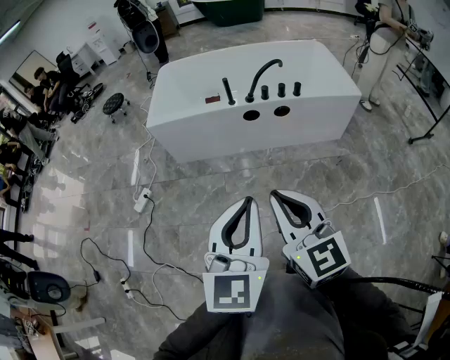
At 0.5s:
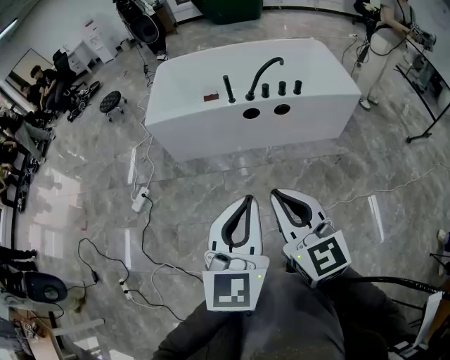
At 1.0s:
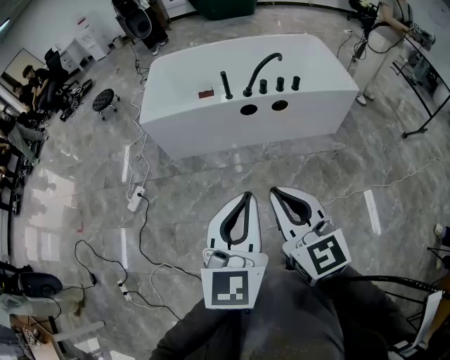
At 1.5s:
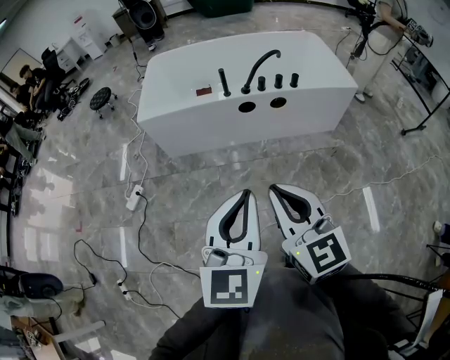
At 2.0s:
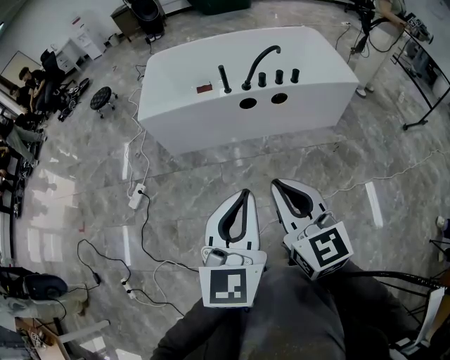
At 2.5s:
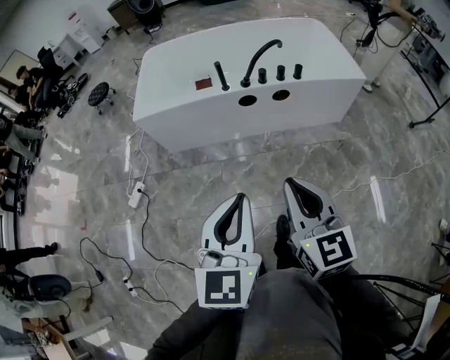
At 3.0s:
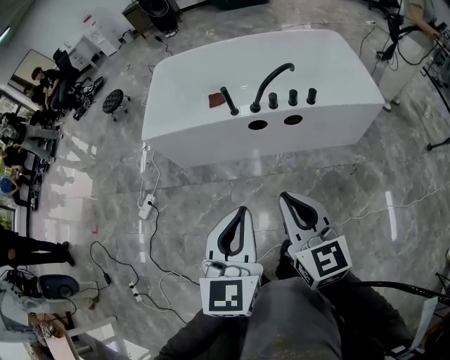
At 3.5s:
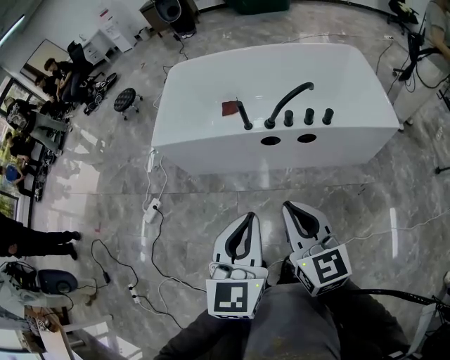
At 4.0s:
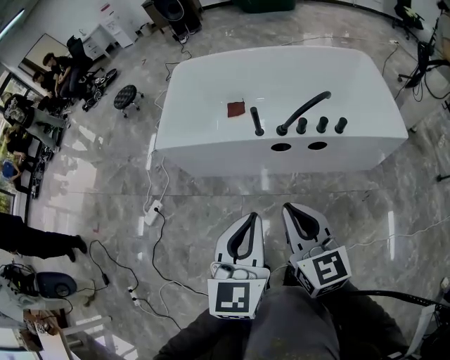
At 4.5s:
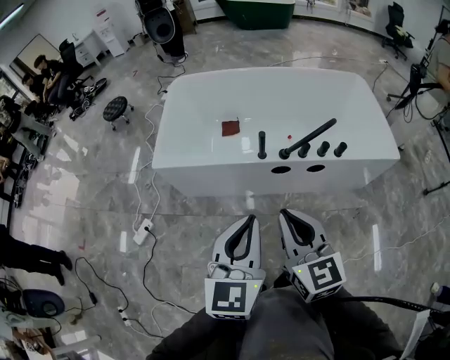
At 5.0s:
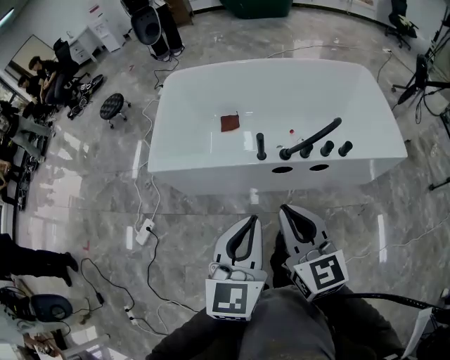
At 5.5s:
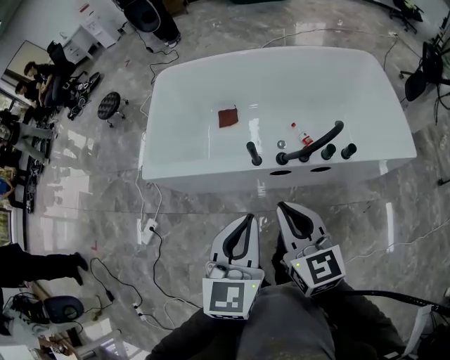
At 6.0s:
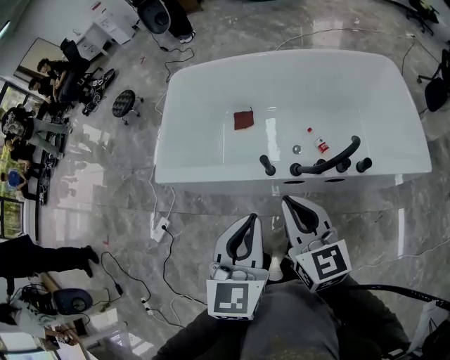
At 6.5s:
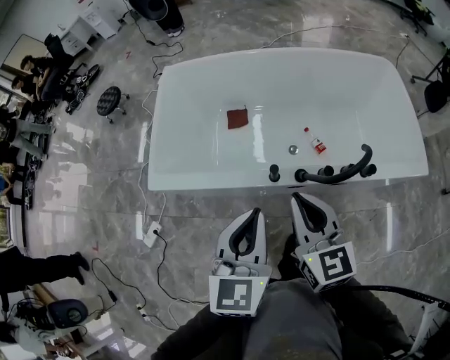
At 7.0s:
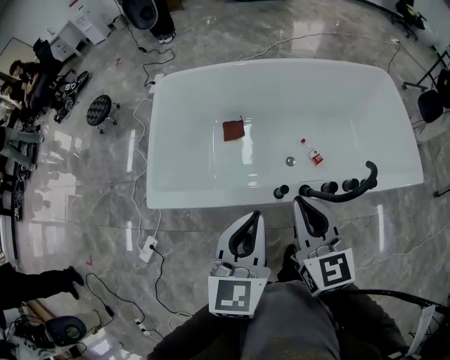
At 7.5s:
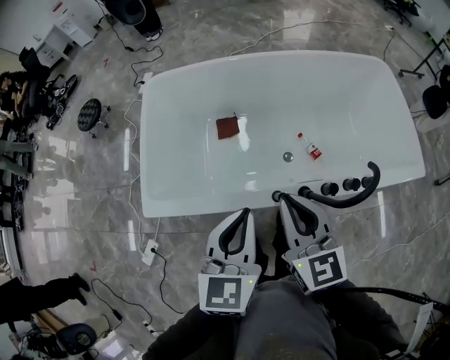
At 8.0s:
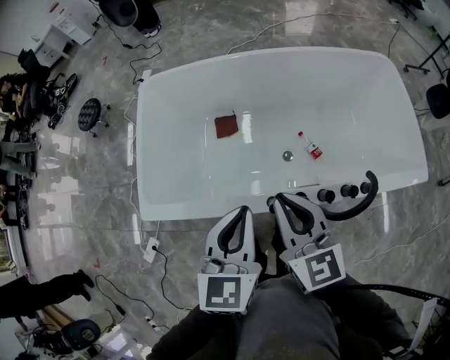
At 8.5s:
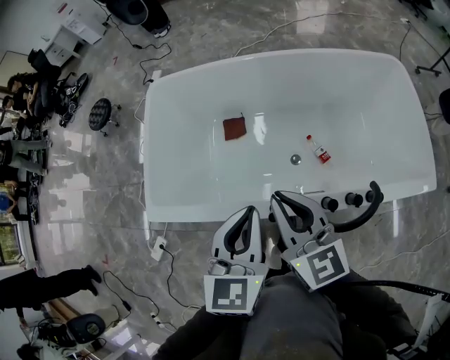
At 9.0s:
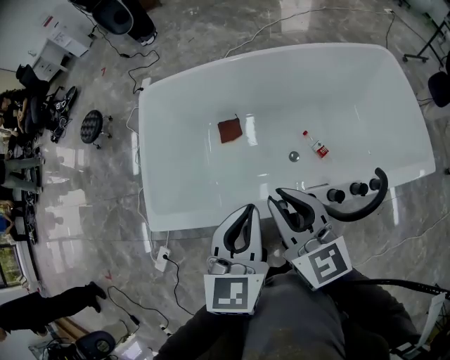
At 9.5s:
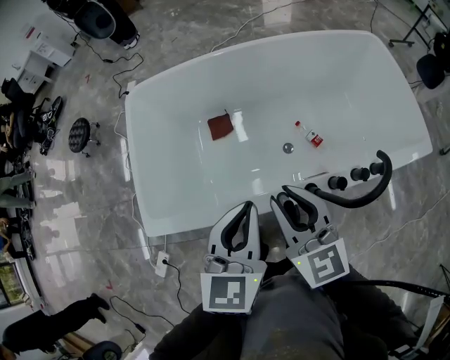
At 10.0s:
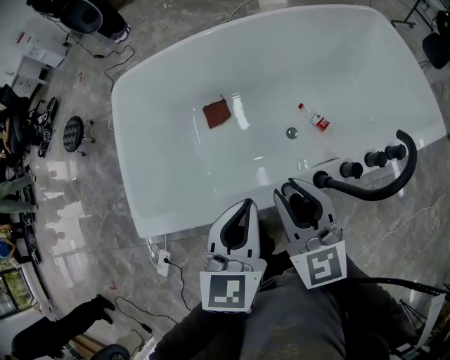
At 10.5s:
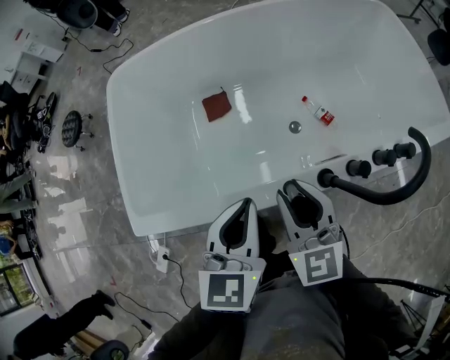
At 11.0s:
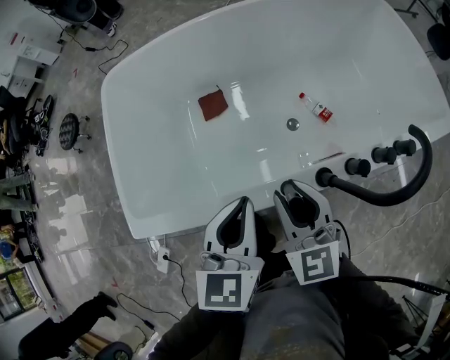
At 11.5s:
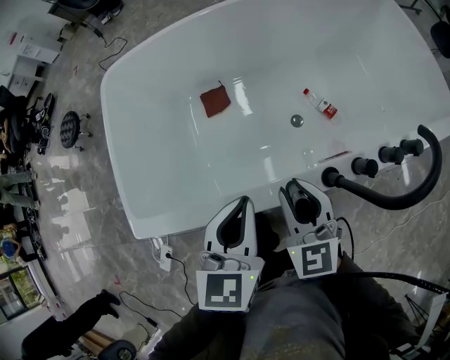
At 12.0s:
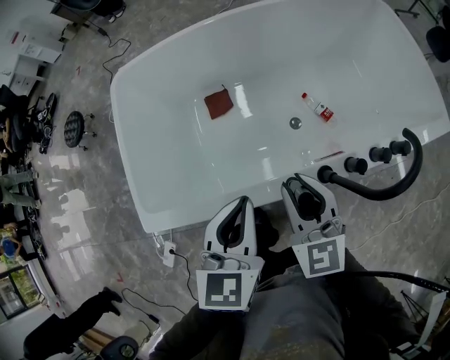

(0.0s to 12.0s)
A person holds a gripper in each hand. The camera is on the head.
0.0s - 2.0s: The grippers stay close to where they were, moving slightly.
2.0s - 4.0s: Both grippers move forward, some 30 cm.
4.0s - 6.0s: The two grippers go some 25 cm forward.
6.0s - 8.0s: Both grippers travel together forward, some 20 cm.
8.0s - 10.0s: Both grippers travel together downward, roughly 15 cm. The right gripper opens its fingers.
10.0s - 12.0s: The right gripper moves some 10 cm downward and comes back.

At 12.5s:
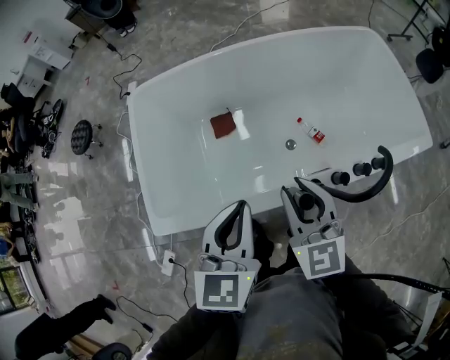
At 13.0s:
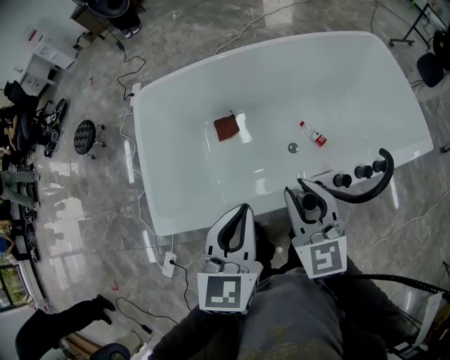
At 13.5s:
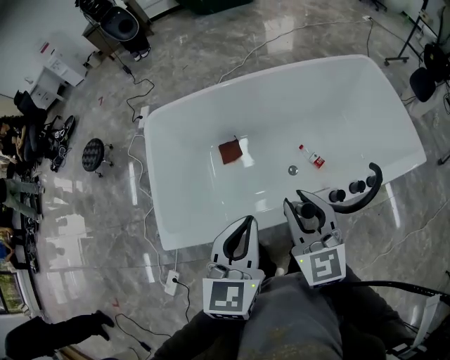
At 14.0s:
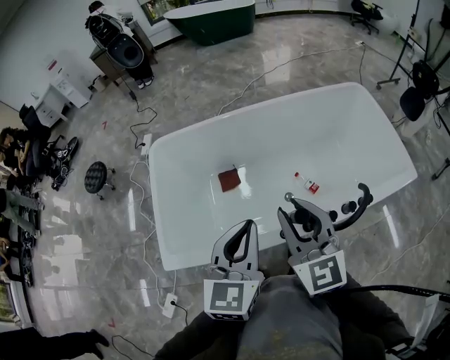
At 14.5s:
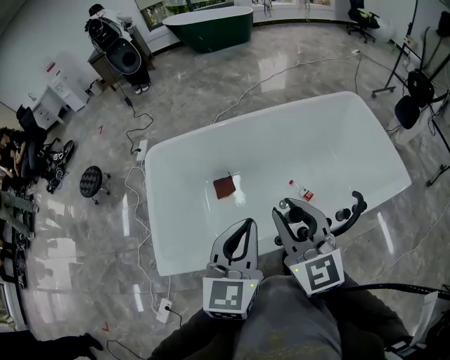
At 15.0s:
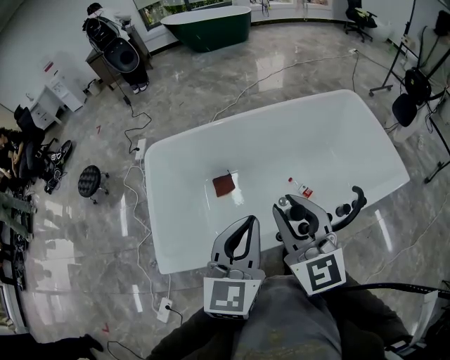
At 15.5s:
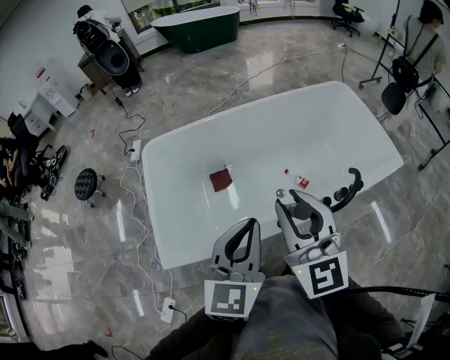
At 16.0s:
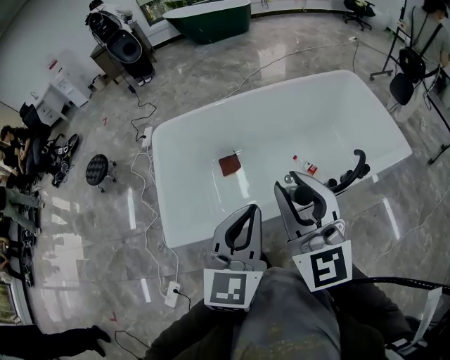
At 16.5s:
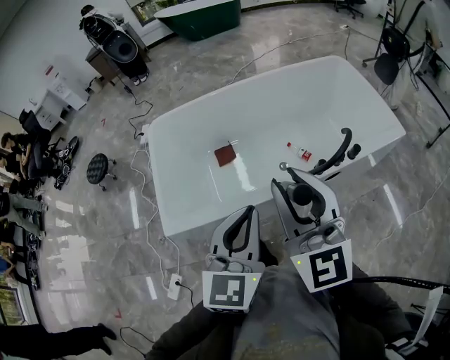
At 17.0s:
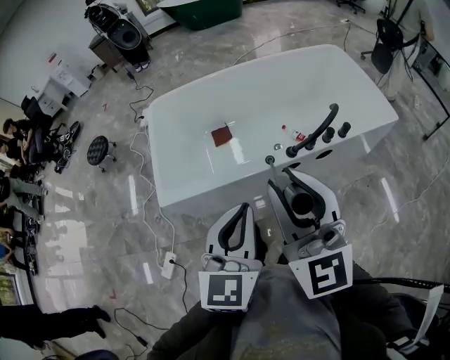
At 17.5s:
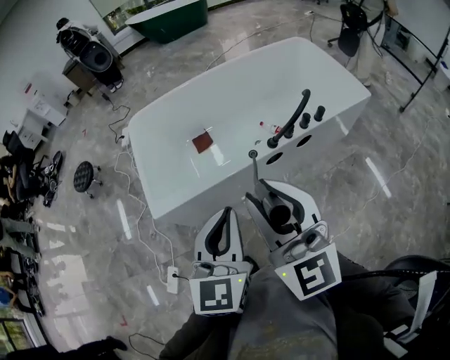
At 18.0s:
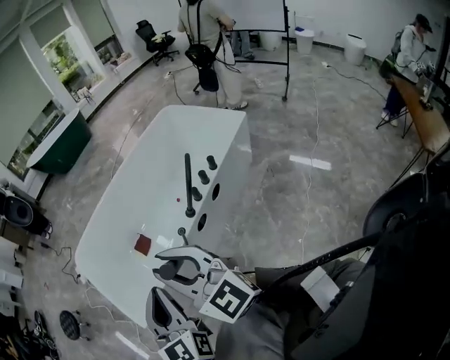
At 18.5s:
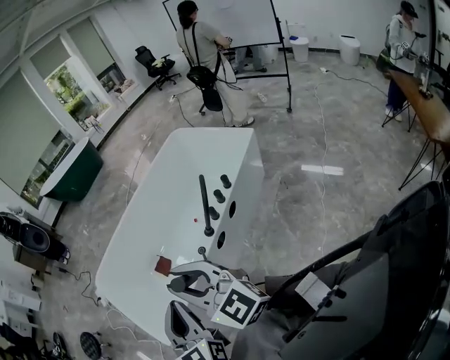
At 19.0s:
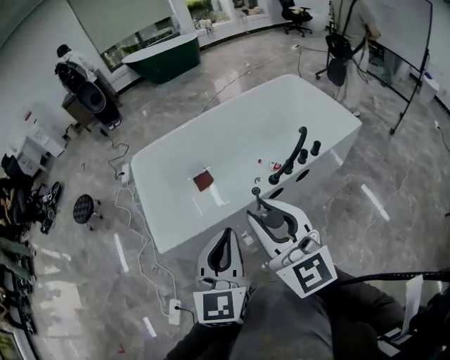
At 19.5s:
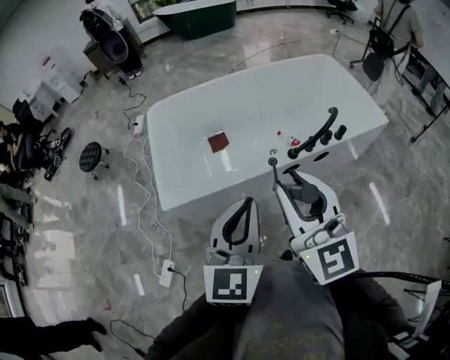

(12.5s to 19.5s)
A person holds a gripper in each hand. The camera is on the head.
12.5s - 14.5s: The two grippers go some 15 cm upward.
14.5s - 16.0s: The right gripper shifts approximately 10 cm backward and upward. The left gripper heads backward, covering about 10 cm.
16.0s - 17.5s: The two grippers go some 20 cm backward.
17.5s - 19.5s: The left gripper is displaced upward by approximately 5 cm.

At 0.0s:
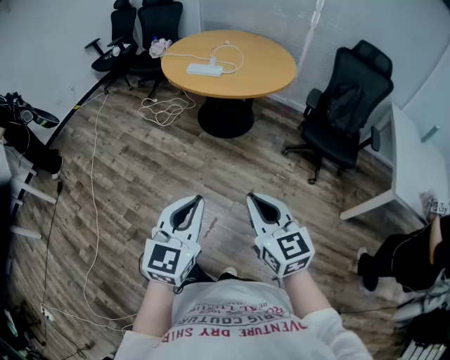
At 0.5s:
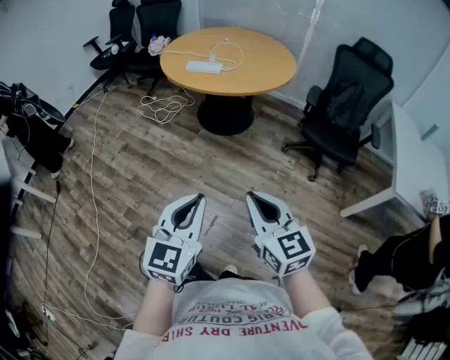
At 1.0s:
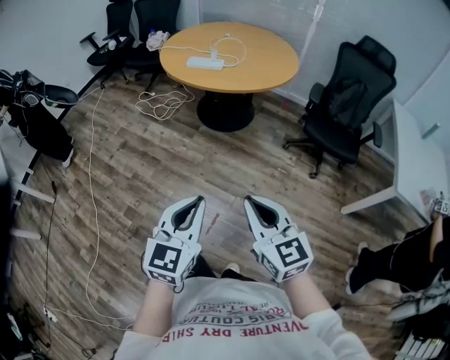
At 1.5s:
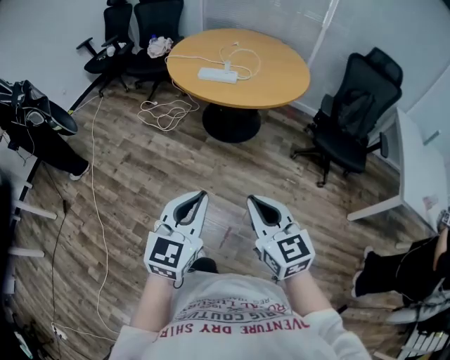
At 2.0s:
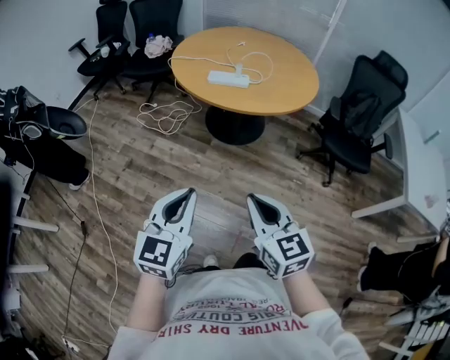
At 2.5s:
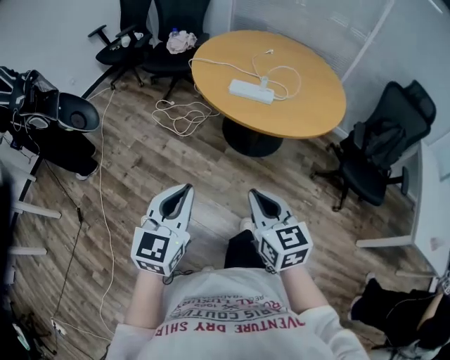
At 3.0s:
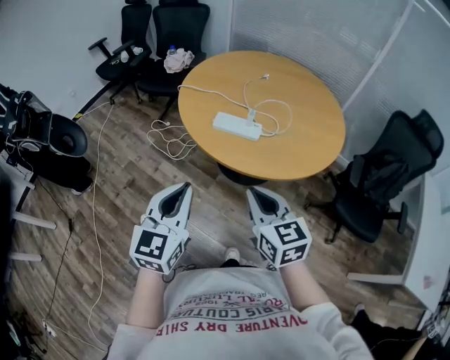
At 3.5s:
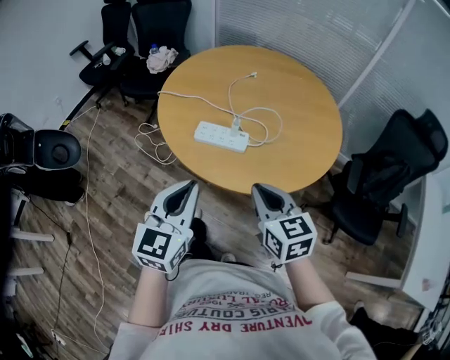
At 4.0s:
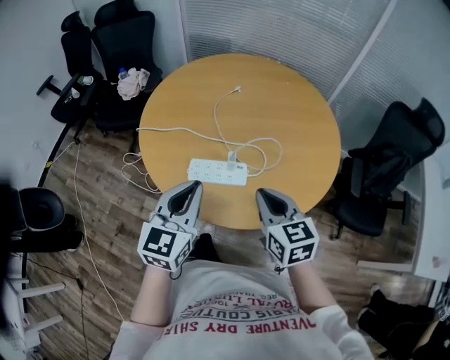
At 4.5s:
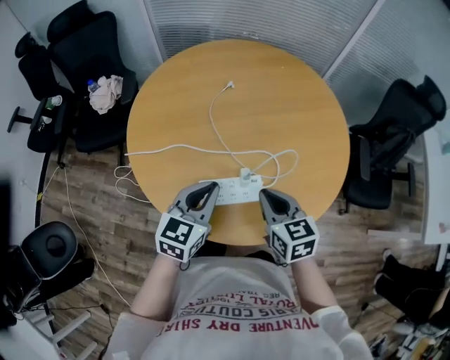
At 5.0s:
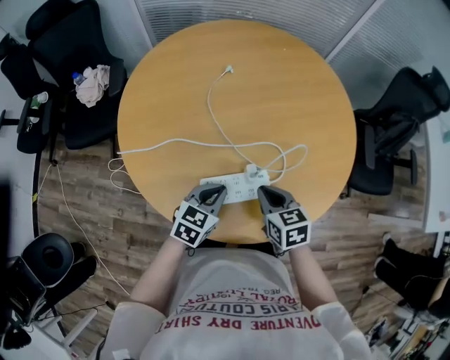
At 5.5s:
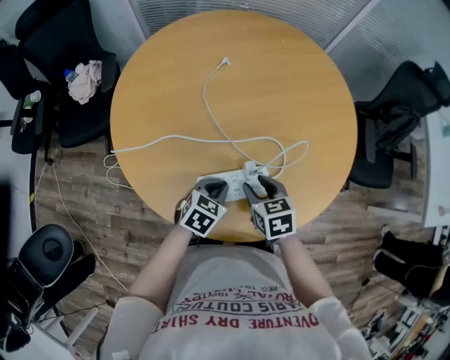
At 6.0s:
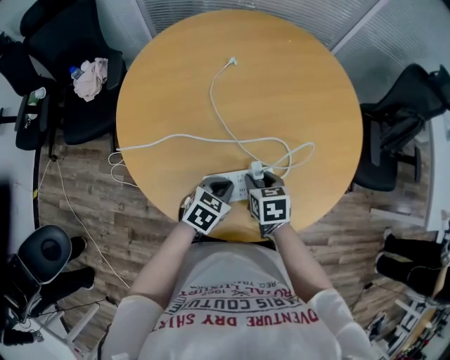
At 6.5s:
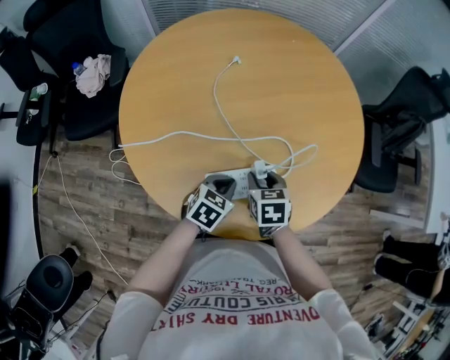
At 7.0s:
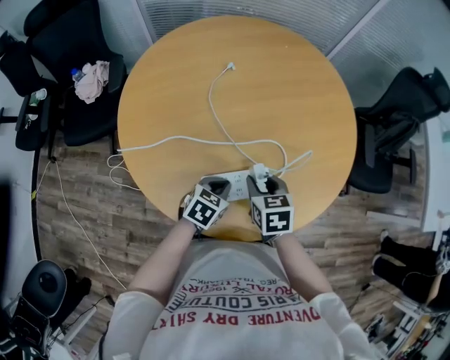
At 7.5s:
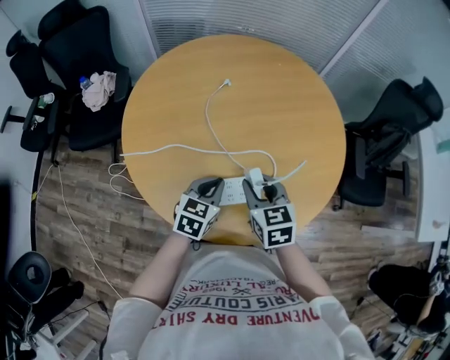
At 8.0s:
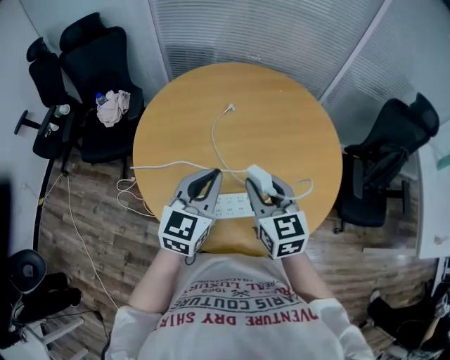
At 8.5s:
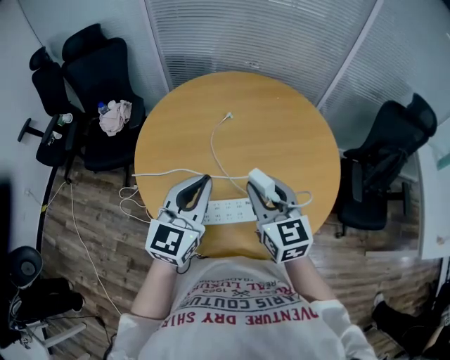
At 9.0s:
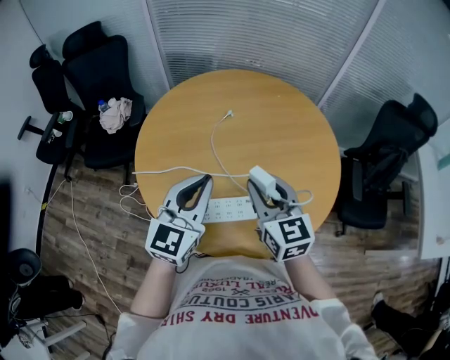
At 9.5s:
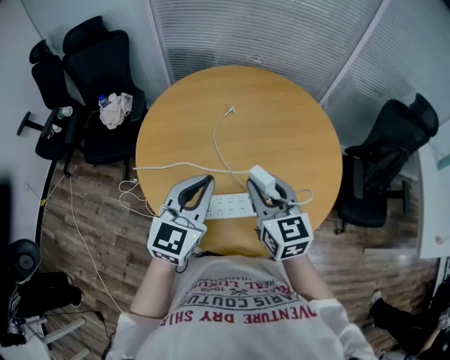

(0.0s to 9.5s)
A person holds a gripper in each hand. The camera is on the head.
0.0s - 2.0s: Both grippers travel together to the left and forward, approximately 30 cm.
2.0s - 4.0s: Both grippers are carried forward, about 60 cm.
4.0s - 5.5s: The left gripper moves downward and forward, about 30 cm, and tips its fingers downward by some 40 degrees. Meanwhile the right gripper heads downward, forward and to the left, covering approximately 25 cm, turns by about 30 degrees, and opens.
5.5s - 7.5s: Both grippers travel together upward, approximately 10 cm.
7.5s - 9.5s: The left gripper shifts roughly 20 cm upward, and turns by about 30 degrees; the right gripper heads upward, covering approximately 15 cm, and swivels some 20 degrees.
